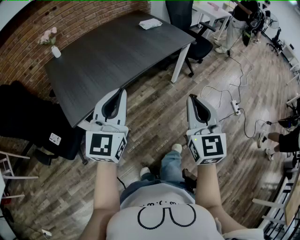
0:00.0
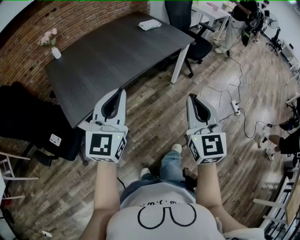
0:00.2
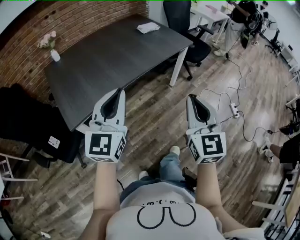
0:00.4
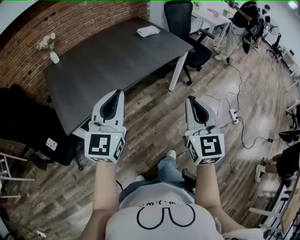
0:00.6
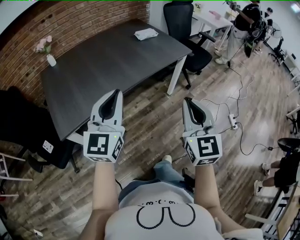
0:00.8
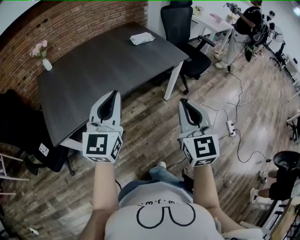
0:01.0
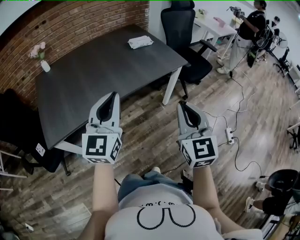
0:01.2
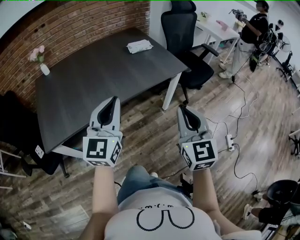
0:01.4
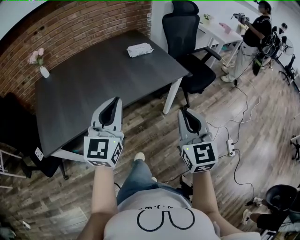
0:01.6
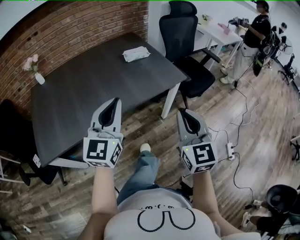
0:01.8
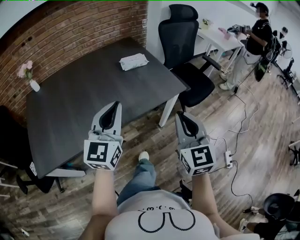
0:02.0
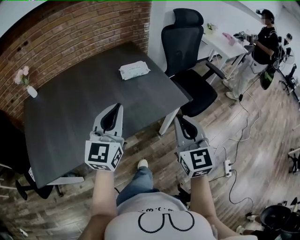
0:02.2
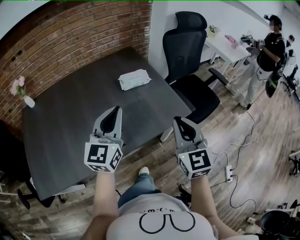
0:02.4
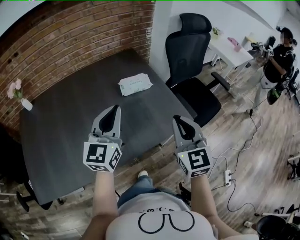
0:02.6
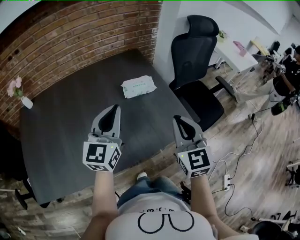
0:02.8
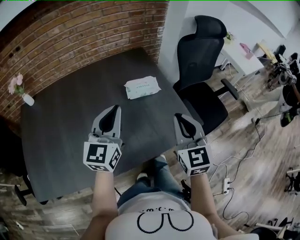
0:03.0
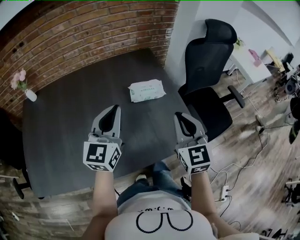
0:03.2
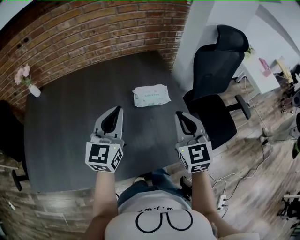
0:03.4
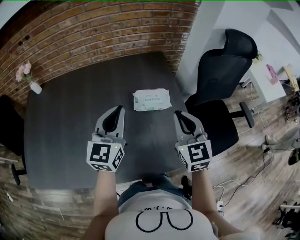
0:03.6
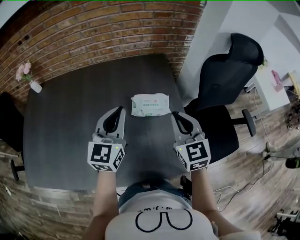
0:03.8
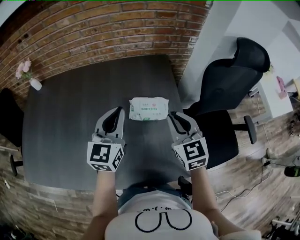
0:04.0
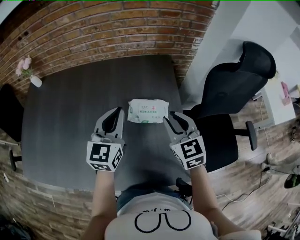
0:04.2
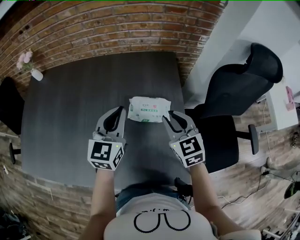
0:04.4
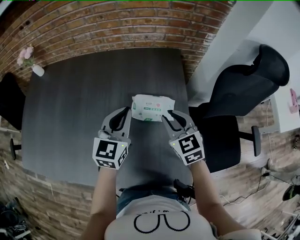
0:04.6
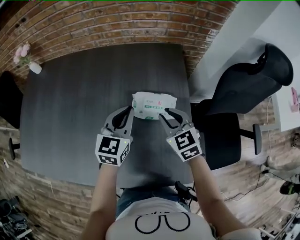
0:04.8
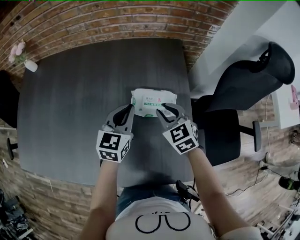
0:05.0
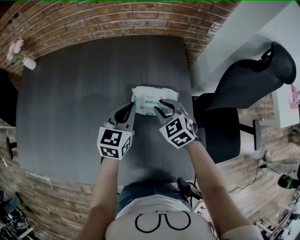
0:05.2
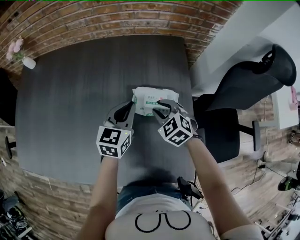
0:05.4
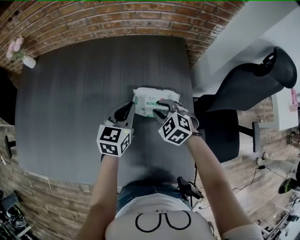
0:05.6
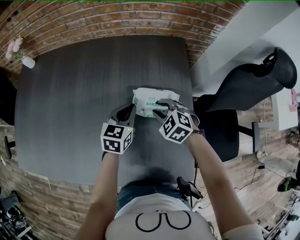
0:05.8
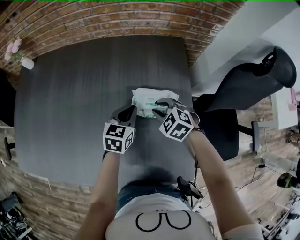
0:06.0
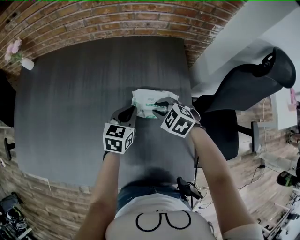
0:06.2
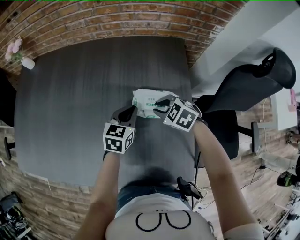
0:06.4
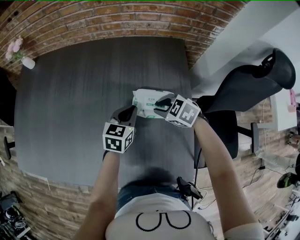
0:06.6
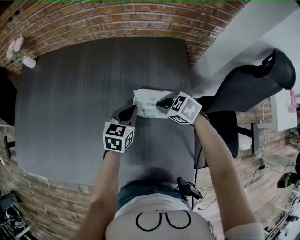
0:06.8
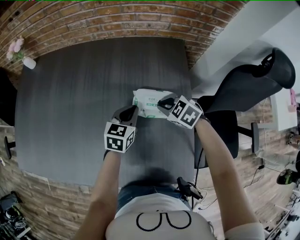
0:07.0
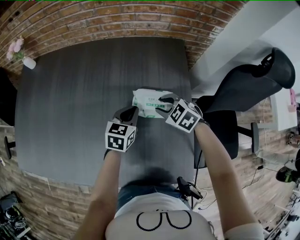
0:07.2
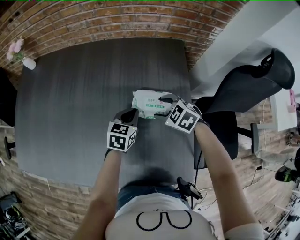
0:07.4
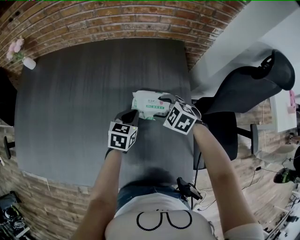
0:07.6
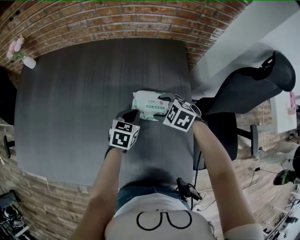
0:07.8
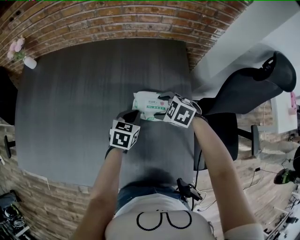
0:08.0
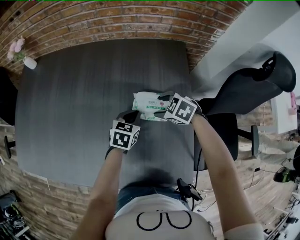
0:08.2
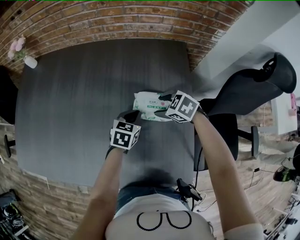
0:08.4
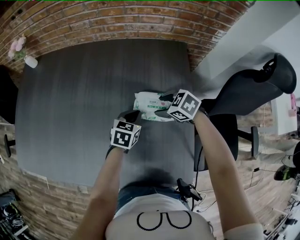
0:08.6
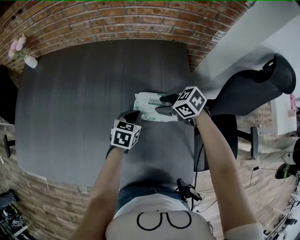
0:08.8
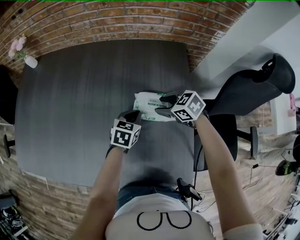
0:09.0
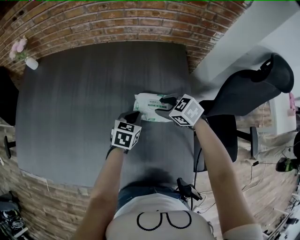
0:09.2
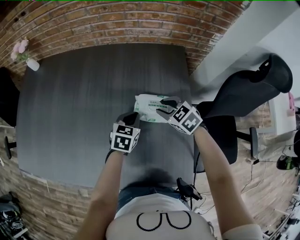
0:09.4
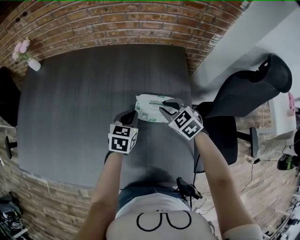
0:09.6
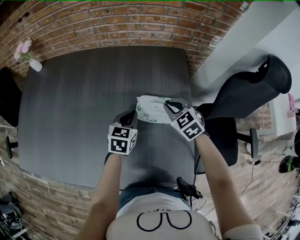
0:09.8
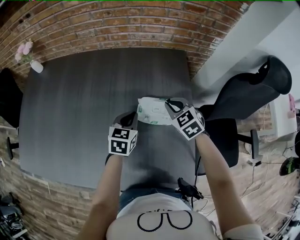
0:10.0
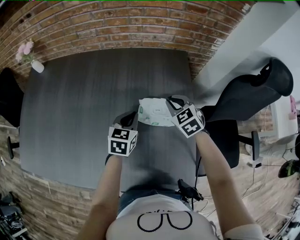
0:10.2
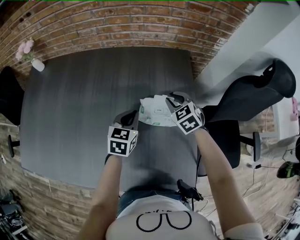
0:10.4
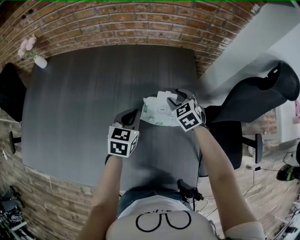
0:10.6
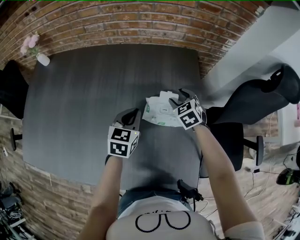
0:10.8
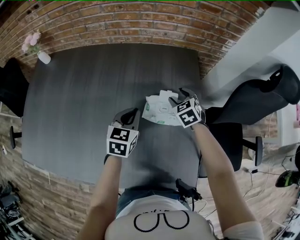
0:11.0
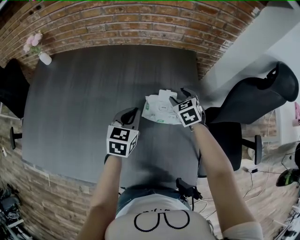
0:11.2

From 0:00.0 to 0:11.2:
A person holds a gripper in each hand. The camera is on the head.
From 0:00.0 to 0:01.6: Both grippers move forward and to the right, roughly 35 cm.
From 0:01.6 to 0:03.2: Both grippers are carried forward, approximately 50 cm.
From 0:03.2 to 0:04.8: The left gripper travels forward, downward and to the right by roughly 25 cm, and changes its angle by some 20 degrees, while the right gripper heads forward and downward, covering roughly 30 cm, and turns by some 40 degrees.
From 0:04.8 to 0:06.4: The grippers both shift downward by some 10 cm. The right gripper turns by approximately 40 degrees.
From 0:06.4 to 0:08.0: The right gripper opens.
From 0:08.0 to 0:09.6: The right gripper shifts by roughly 5 cm, turns by approximately 20 degrees, and closes its fingers.
From 0:09.6 to 0:11.2: The left gripper travels upward by approximately 5 cm; the right gripper heads forward, covering some 5 cm, and opens.

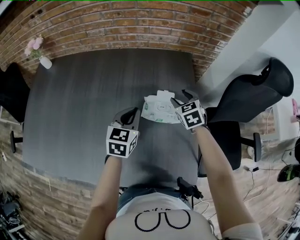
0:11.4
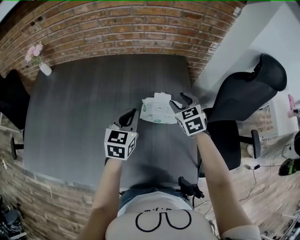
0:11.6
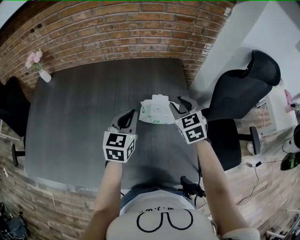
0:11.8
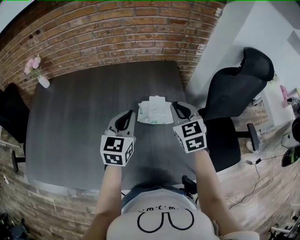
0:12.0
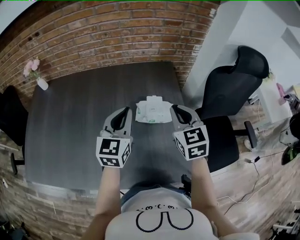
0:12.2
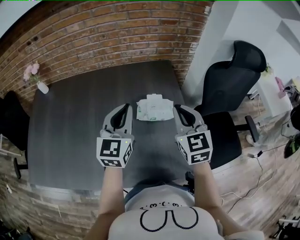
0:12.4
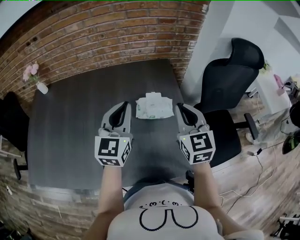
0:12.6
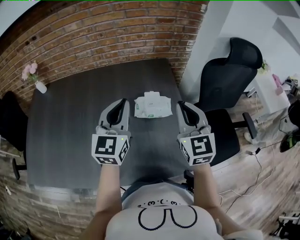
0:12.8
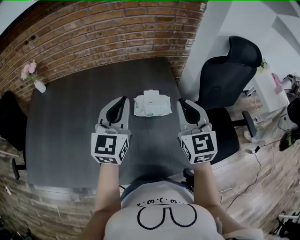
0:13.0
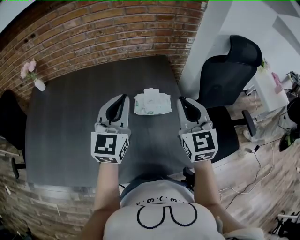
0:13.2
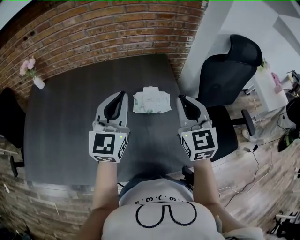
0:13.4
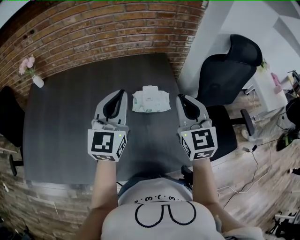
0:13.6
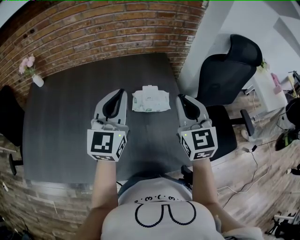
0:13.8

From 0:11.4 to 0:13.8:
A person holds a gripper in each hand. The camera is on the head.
From 0:11.4 to 0:12.6: Both grippers travel together upward and backward, approximately 25 cm. The right gripper angles its fingers upward, by roughly 30 degrees, and closes its fingers, while the left gripper turns by about 30 degrees.
From 0:12.6 to 0:13.8: The grippers stay close to where they were, moving slightly.

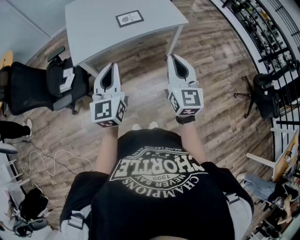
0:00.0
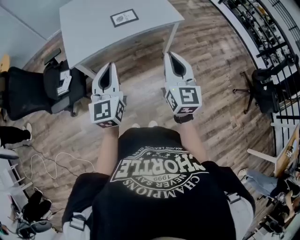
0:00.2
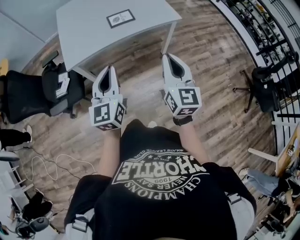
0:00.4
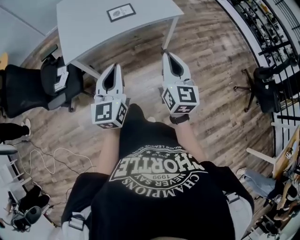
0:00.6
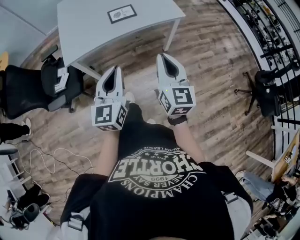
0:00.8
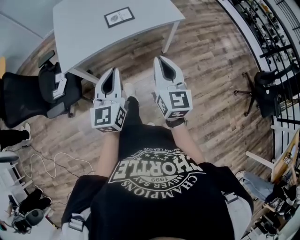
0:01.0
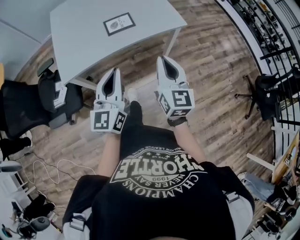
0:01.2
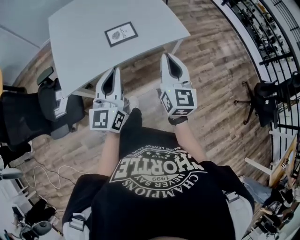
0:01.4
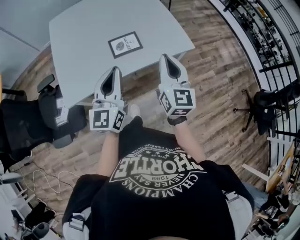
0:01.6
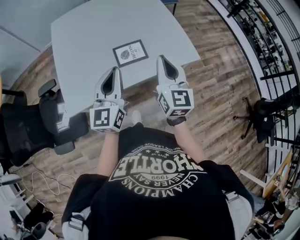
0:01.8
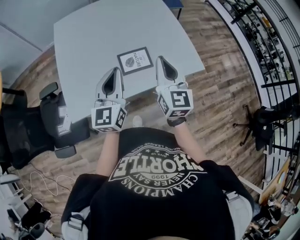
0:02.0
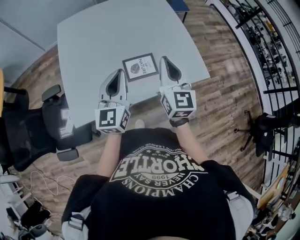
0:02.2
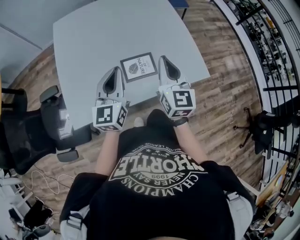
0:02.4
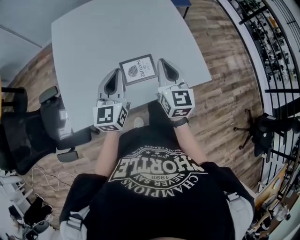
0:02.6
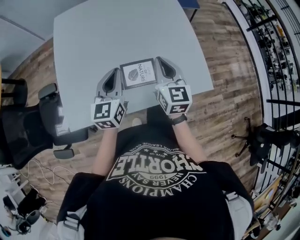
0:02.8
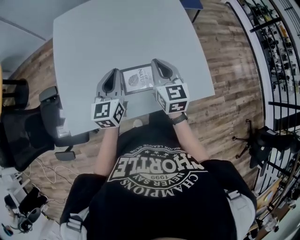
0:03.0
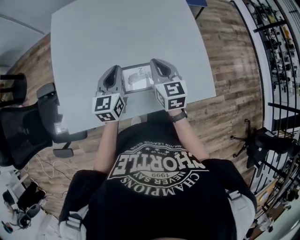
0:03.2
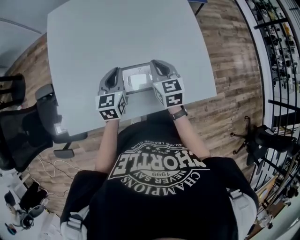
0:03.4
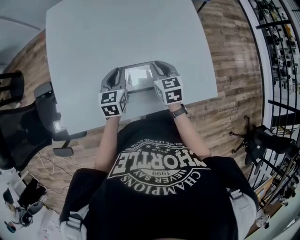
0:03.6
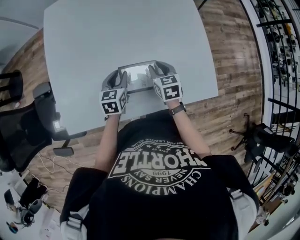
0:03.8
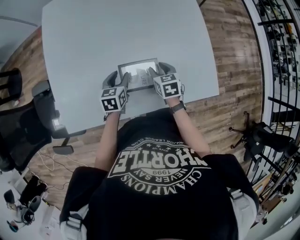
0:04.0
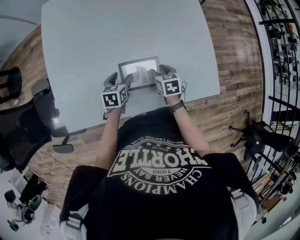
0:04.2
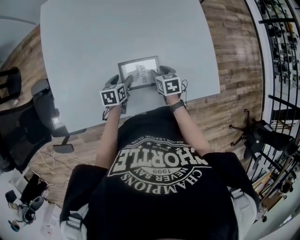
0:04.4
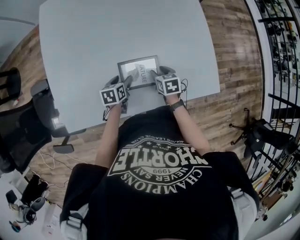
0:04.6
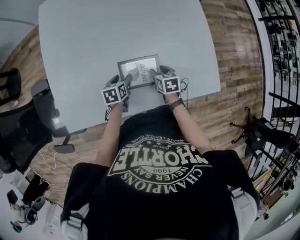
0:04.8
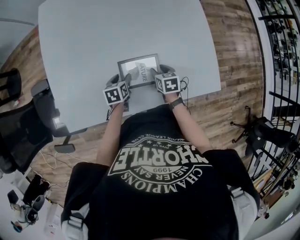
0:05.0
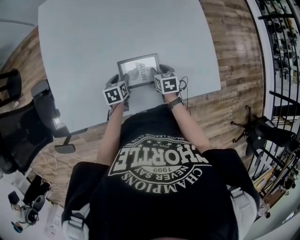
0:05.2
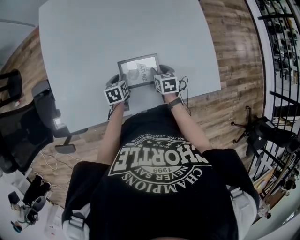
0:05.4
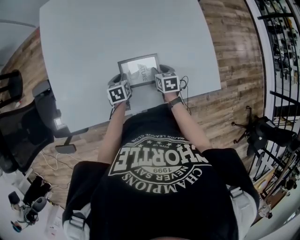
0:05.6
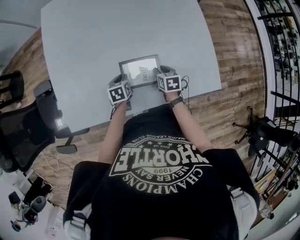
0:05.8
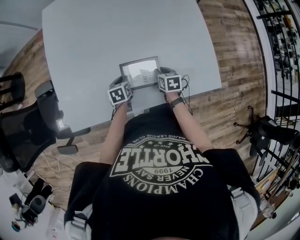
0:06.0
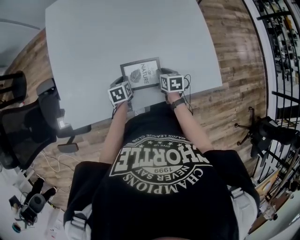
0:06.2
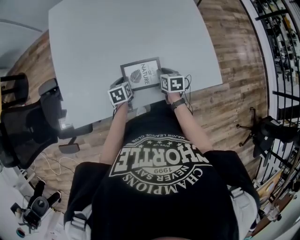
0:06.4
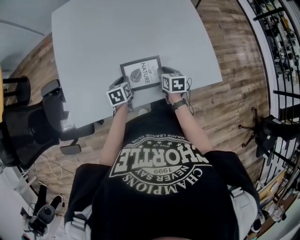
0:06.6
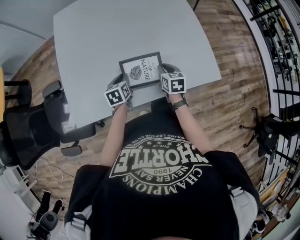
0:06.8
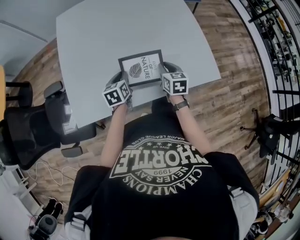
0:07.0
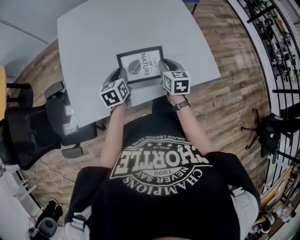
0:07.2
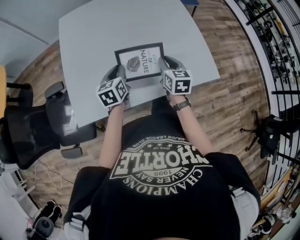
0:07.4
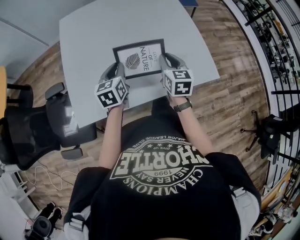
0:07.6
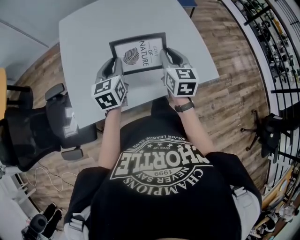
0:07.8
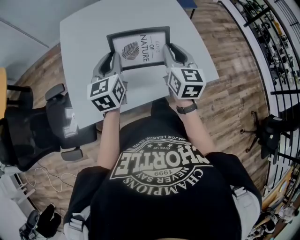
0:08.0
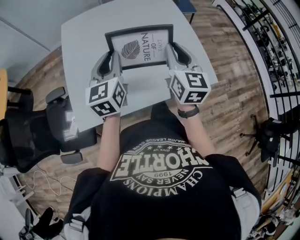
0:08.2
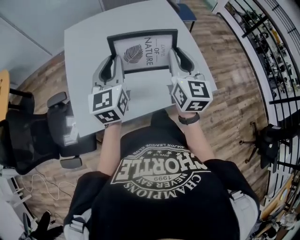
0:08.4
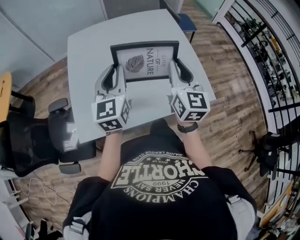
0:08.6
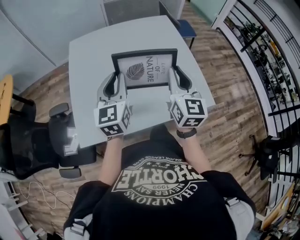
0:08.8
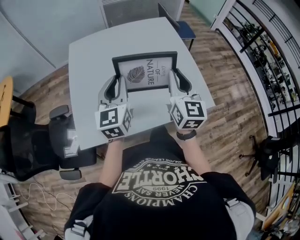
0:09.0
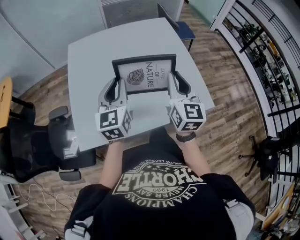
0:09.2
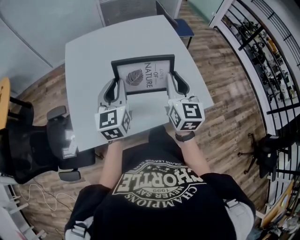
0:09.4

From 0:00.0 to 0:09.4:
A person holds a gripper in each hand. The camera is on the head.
From 0:00.0 to 0:01.6: The two grippers go roughly 35 cm forward.
From 0:01.6 to 0:03.2: Both grippers are carried forward, about 40 cm. The right gripper swivels about 30 degrees. The left gripper shifts some 15 cm downward, and rotates some 30 degrees.
From 0:03.2 to 0:04.8: The grippers both shift downward by approximately 25 cm. The left gripper tilts its fingers approximately 30 degrees downward, and opens up, while the right gripper angles its fingers downward, by roughly 30 degrees, and opens.
From 0:04.8 to 0:06.2: The right gripper closes; the left gripper closes.
From 0:06.2 to 0:07.8: Both grippers travel together upward, roughly 30 cm. The right gripper angles its fingers upward, by roughly 40 degrees, while the left gripper points its fingers approximately 40 degrees further upward.
From 0:07.8 to 0:09.4: The grippers both shift upward by some 10 cm.
